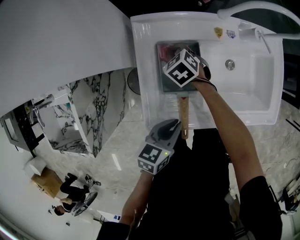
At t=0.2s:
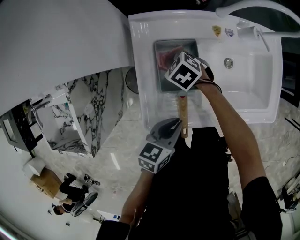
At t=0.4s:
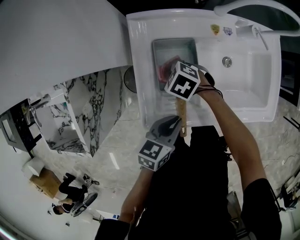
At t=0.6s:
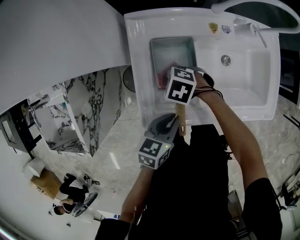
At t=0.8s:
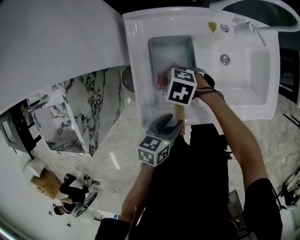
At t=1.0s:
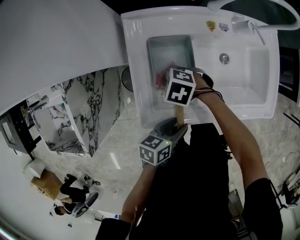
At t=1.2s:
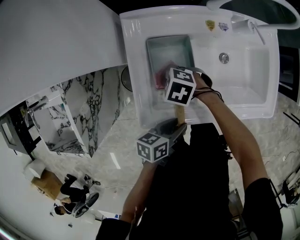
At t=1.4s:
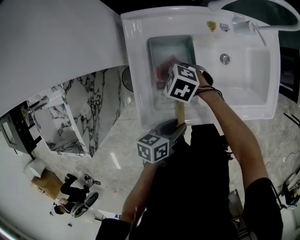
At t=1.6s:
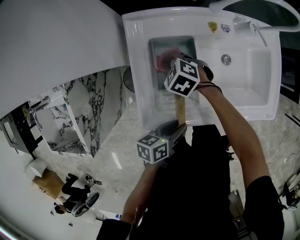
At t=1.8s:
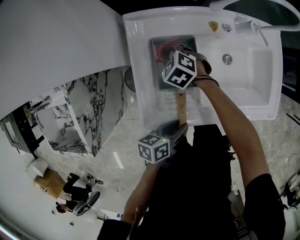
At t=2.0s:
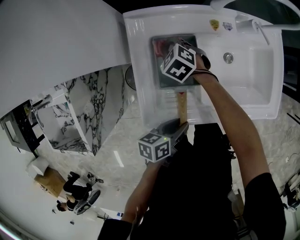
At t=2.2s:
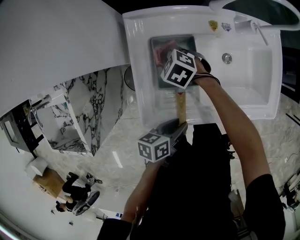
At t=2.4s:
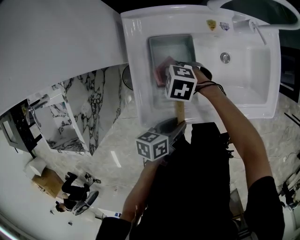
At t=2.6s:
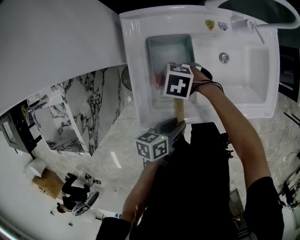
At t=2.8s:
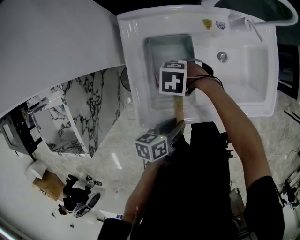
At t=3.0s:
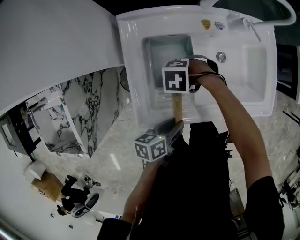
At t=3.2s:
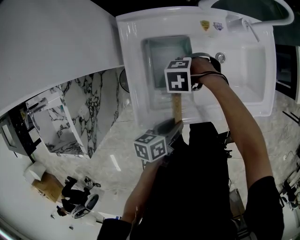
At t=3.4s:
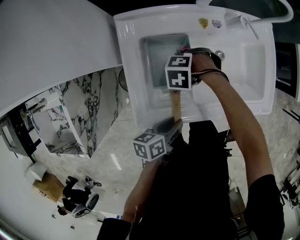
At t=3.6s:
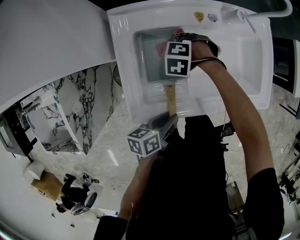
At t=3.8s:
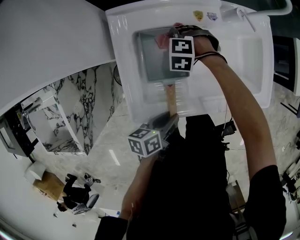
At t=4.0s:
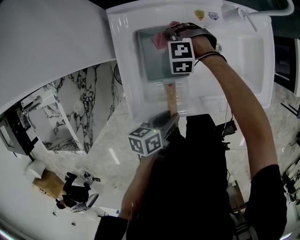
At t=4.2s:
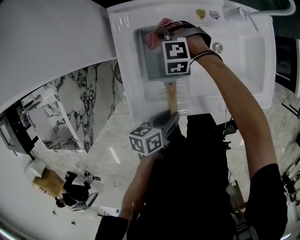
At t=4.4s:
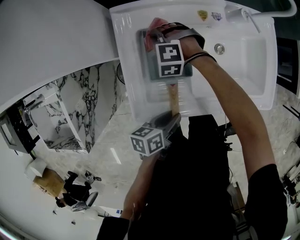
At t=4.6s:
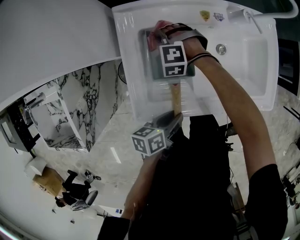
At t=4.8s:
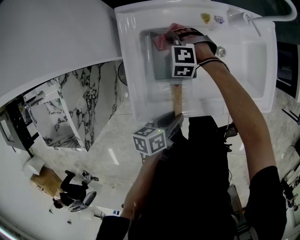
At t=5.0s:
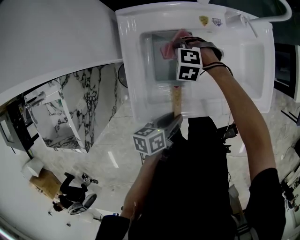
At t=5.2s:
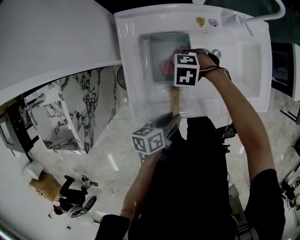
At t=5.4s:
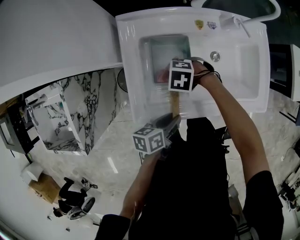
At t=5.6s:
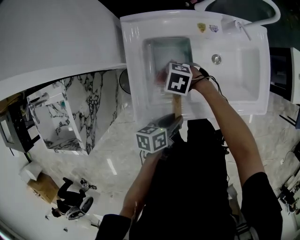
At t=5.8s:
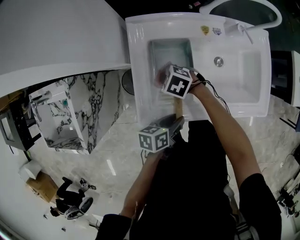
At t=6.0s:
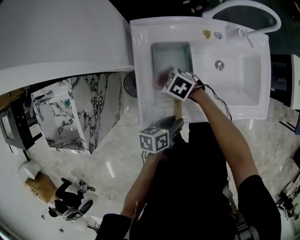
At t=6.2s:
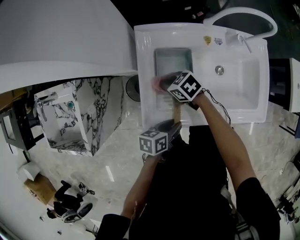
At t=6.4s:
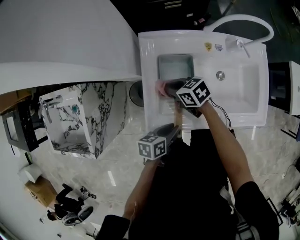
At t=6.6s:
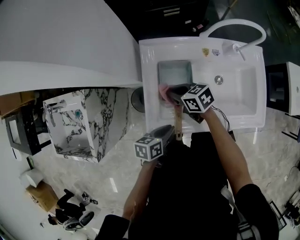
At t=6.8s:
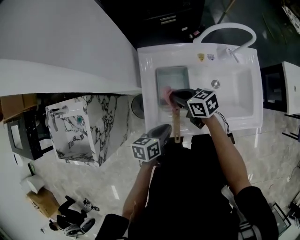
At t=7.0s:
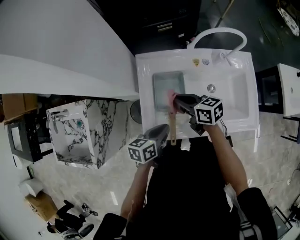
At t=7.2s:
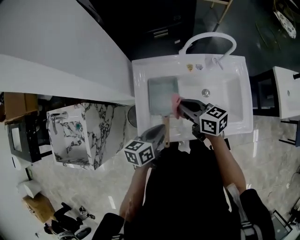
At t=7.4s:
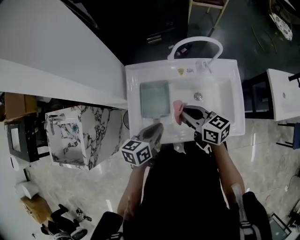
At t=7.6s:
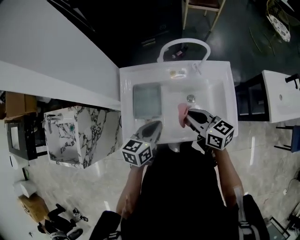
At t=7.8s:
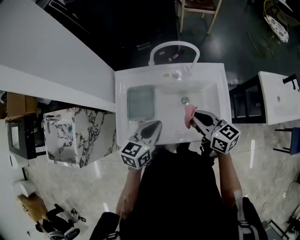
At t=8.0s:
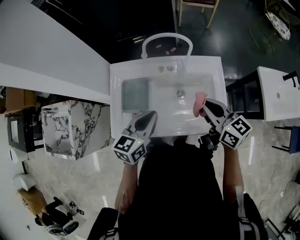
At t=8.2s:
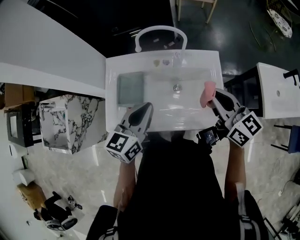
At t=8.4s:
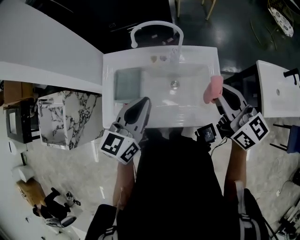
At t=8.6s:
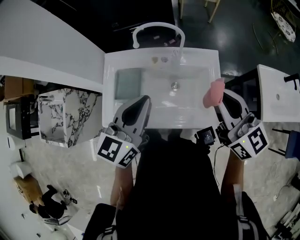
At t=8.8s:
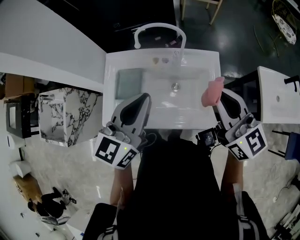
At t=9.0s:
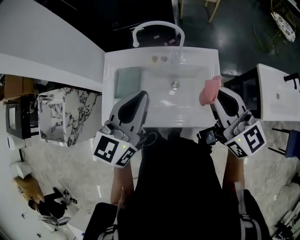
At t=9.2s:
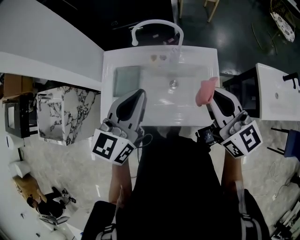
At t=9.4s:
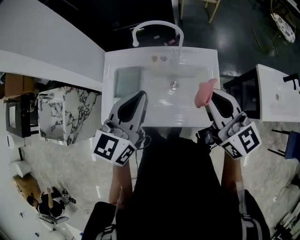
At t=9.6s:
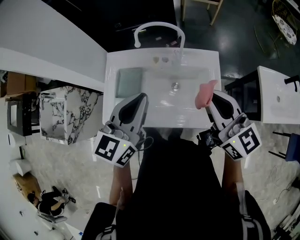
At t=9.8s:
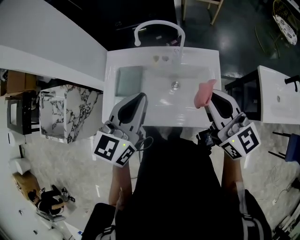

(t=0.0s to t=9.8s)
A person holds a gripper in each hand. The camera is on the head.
t=0.0s - t=1.4s: The left gripper moves about 5 cm, changes its angle by some 20 degrees, and opens its fingers; the right gripper shifts by about 10 cm, and swivels roughly 30 degrees.
t=1.4s - t=2.8s: The right gripper rotates some 20 degrees.
t=2.8s - t=4.2s: The right gripper changes place by roughly 15 cm, and changes its angle by about 50 degrees.
t=4.2s - t=5.6s: The right gripper shifts by about 15 cm, and turns by roughly 40 degrees.
t=5.6s - t=7.0s: The left gripper goes approximately 10 cm upward, and closes up; the right gripper goes some 15 cm upward, and points its fingers approximately 40 degrees further upward.
t=7.0s - t=8.4s: The right gripper shifts about 40 cm to the right and upward, and turns by about 40 degrees. Meanwhile the left gripper moves upward and to the right, some 30 cm, and rotates roughly 40 degrees.
t=8.4s - t=9.8s: The left gripper goes roughly 5 cm upward.

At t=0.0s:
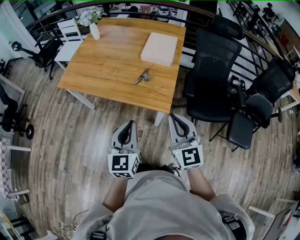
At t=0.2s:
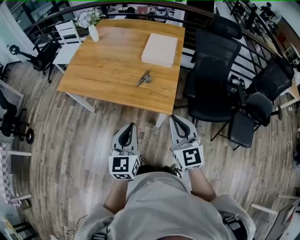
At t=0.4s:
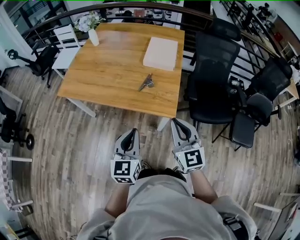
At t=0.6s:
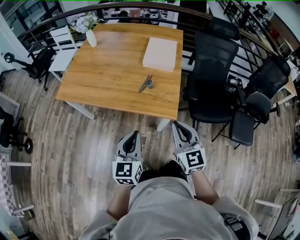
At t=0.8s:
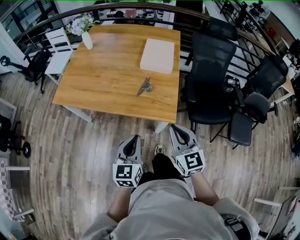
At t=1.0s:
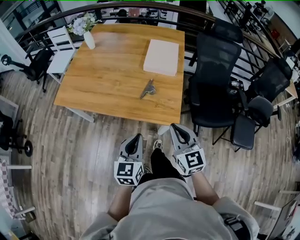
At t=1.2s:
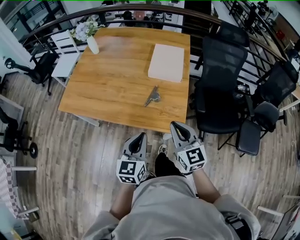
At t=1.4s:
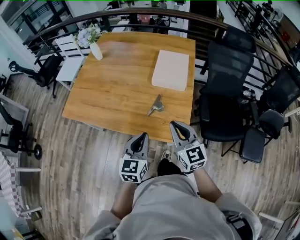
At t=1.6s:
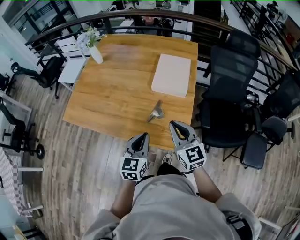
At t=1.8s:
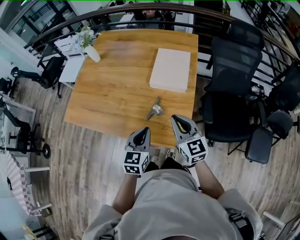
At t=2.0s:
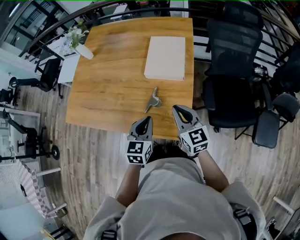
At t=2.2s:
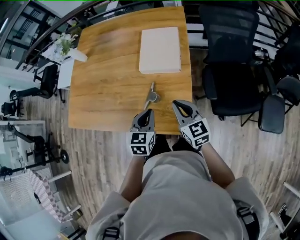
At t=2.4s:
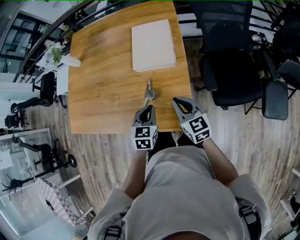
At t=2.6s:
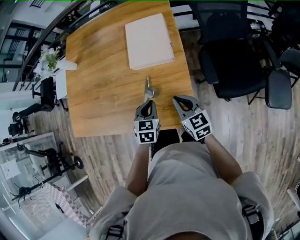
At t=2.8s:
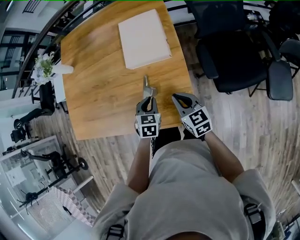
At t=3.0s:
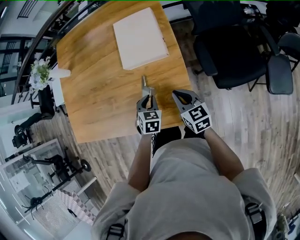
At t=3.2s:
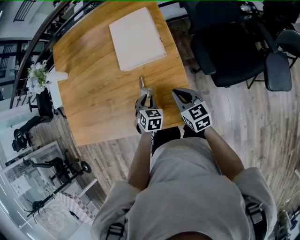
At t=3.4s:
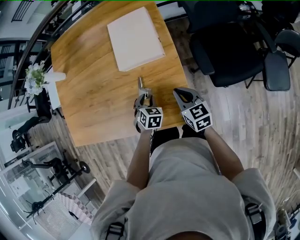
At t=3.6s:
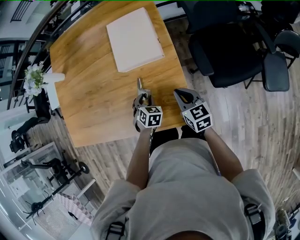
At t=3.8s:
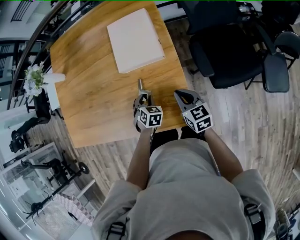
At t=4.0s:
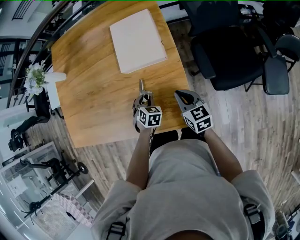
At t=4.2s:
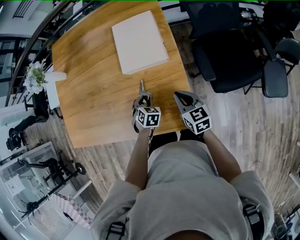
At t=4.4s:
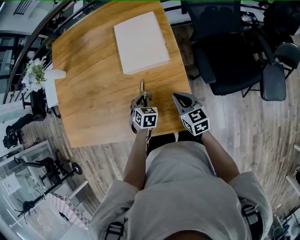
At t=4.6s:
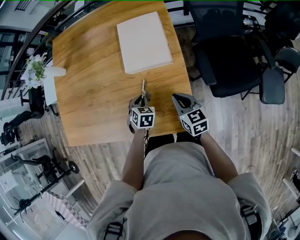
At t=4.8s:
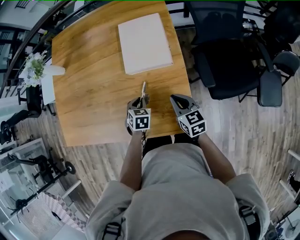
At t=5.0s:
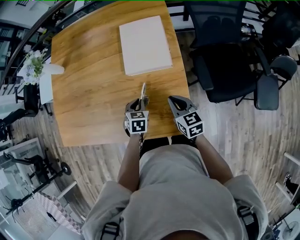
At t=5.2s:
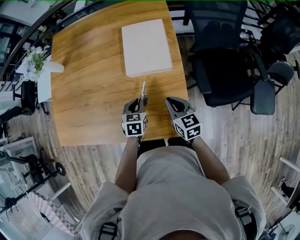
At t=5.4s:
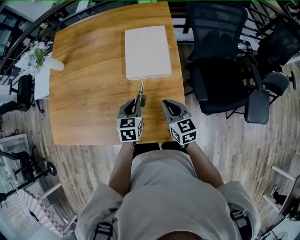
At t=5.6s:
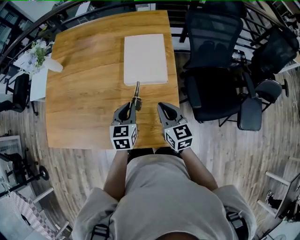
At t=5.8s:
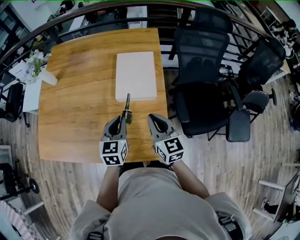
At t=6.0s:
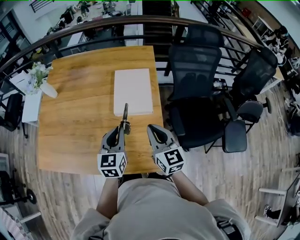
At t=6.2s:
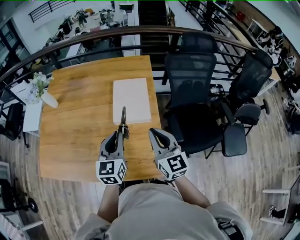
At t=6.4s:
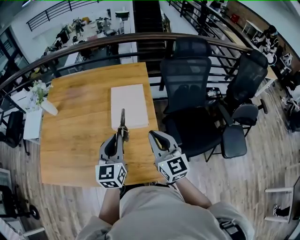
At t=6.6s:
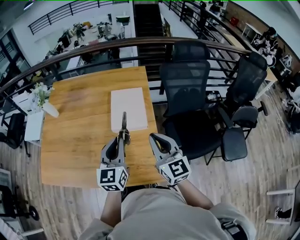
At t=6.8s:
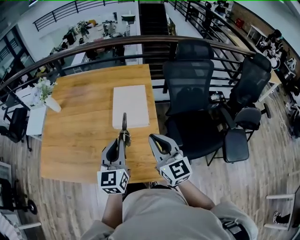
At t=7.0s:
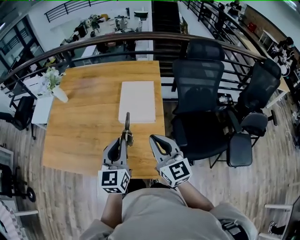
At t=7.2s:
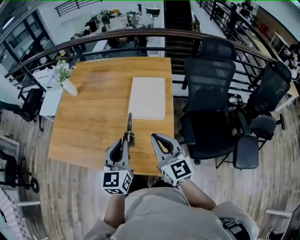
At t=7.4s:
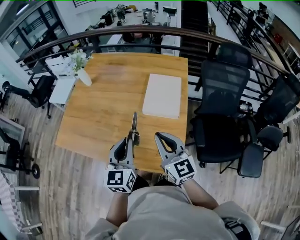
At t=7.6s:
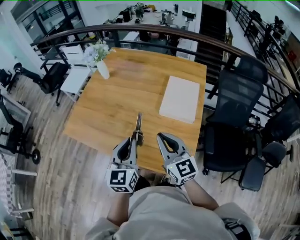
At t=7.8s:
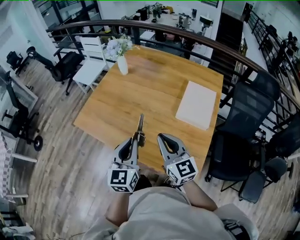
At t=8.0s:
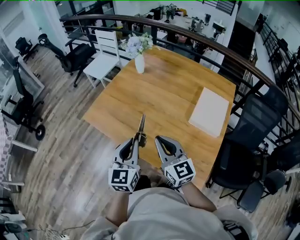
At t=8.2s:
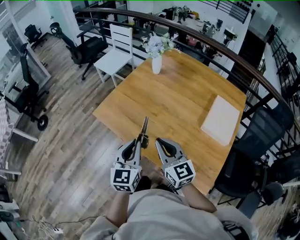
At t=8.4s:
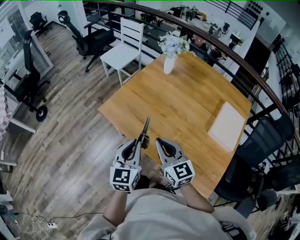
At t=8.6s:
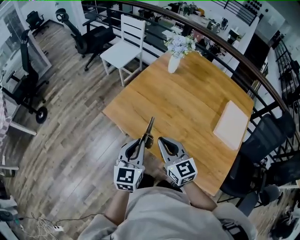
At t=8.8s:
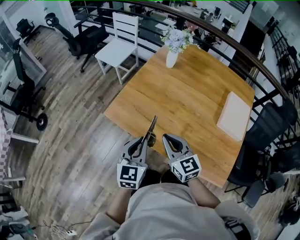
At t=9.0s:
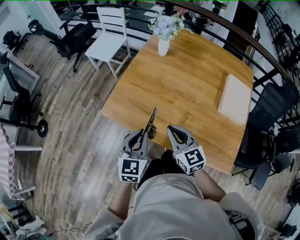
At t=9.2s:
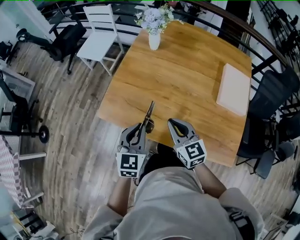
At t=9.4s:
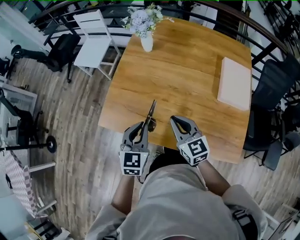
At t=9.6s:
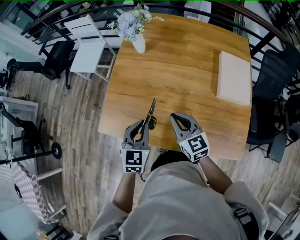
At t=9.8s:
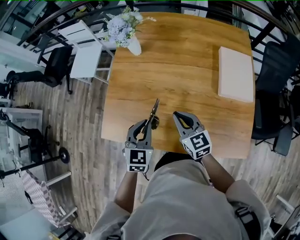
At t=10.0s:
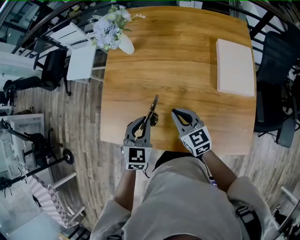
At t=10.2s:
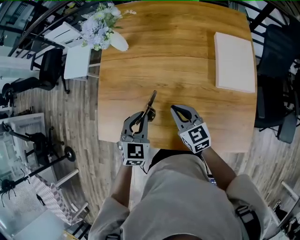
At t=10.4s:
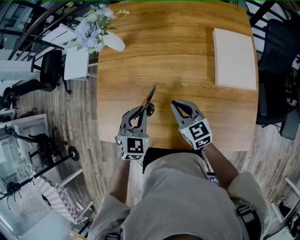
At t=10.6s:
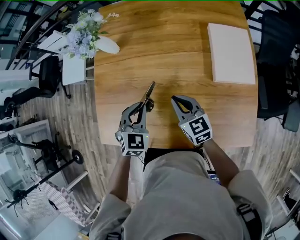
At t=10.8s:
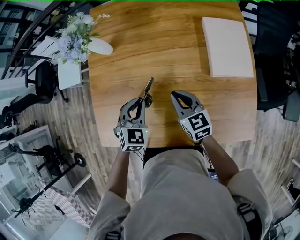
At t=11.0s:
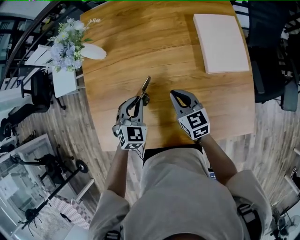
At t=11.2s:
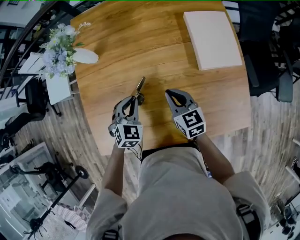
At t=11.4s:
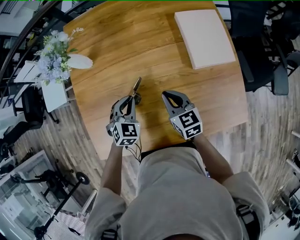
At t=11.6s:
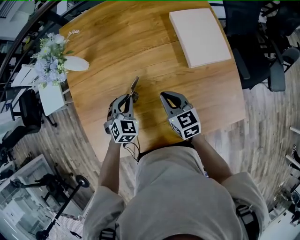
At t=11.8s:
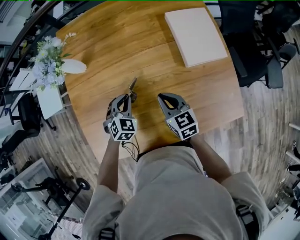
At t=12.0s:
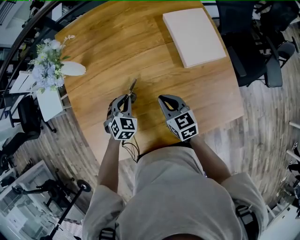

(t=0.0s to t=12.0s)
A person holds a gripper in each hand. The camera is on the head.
t=0.0s - t=1.6s: The grippers both shift forward by approximately 25 cm.
t=1.6s - t=3.0s: The right gripper travels downward by roughly 20 cm, and turns by approximately 30 degrees. Meanwhile the left gripper is displaced downward and forward by approximately 25 cm, and points its fingers about 30 degrees further downward.
t=3.0s - t=4.4s: The left gripper shifts by about 5 cm.
t=4.4s - t=6.0s: The grippers both shift upward by roughly 20 cm. The right gripper rotates roughly 20 degrees, while the left gripper tilts its fingers about 40 degrees upward.
t=6.0s - t=7.6s: The left gripper is displaced to the left, backward and upward by roughly 20 cm, and rotates about 20 degrees, while the right gripper goes roughly 15 cm to the left and backward, and turns by roughly 30 degrees.
t=7.6s - t=9.0s: Both grippers travel together to the left and forward, some 35 cm.
t=9.0s - t=10.4s: The two grippers go approximately 25 cm forward, to the right and downward. The left gripper changes its angle by approximately 40 degrees.
t=10.4s - t=12.0s: The left gripper is displaced downward and forward by roughly 15 cm, and changes its angle by some 20 degrees; the right gripper shifts by about 5 cm, and rotates roughly 20 degrees.

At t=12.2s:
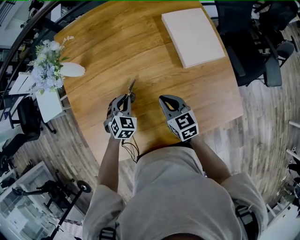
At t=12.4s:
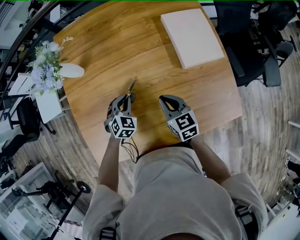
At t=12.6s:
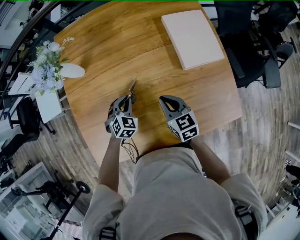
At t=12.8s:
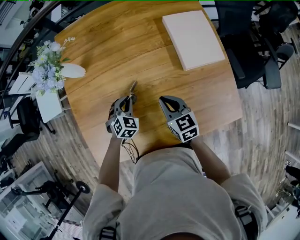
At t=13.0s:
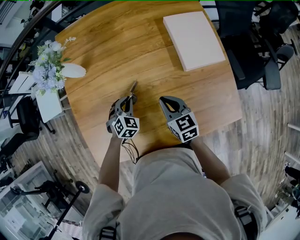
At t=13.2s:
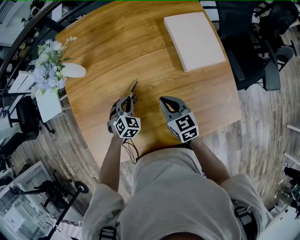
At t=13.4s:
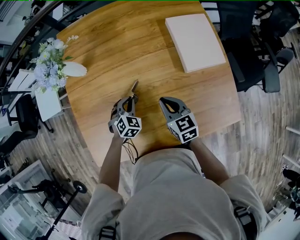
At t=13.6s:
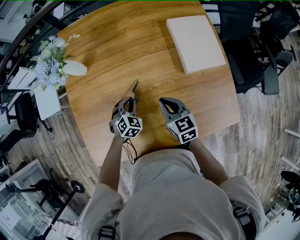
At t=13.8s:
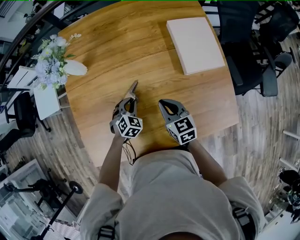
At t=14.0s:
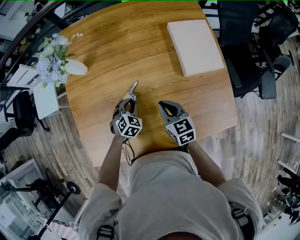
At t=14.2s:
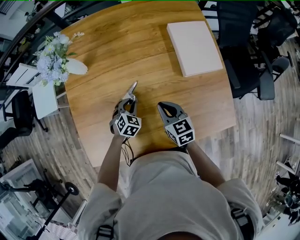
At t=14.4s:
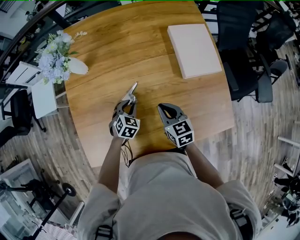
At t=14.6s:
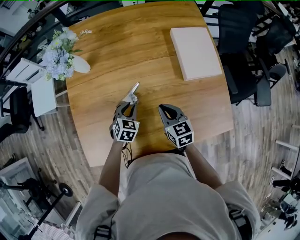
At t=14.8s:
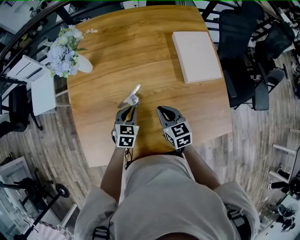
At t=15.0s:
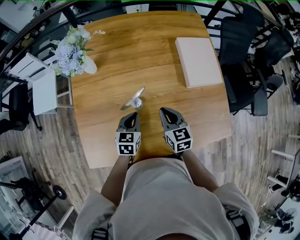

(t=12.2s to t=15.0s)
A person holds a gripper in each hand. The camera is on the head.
t=12.2s - t=13.6s: There are only small adjustments of the grippers.
t=13.6s - t=15.0s: The left gripper moves upward, roughly 10 cm, and twists approximately 40 degrees counterclockwise, seen from behind.
